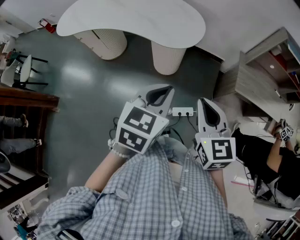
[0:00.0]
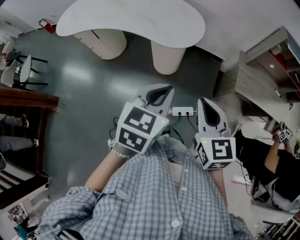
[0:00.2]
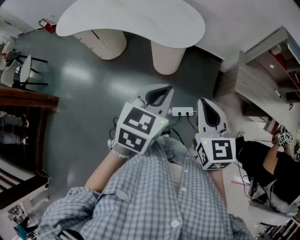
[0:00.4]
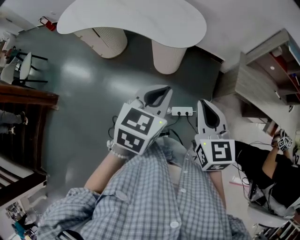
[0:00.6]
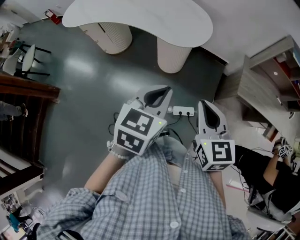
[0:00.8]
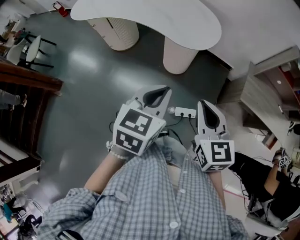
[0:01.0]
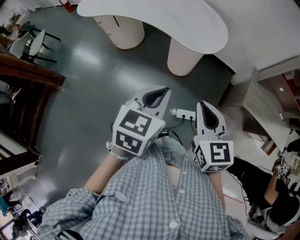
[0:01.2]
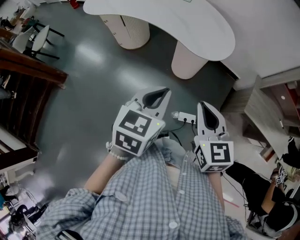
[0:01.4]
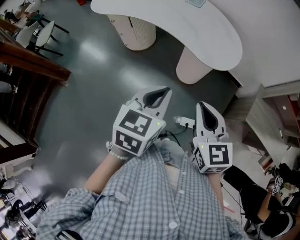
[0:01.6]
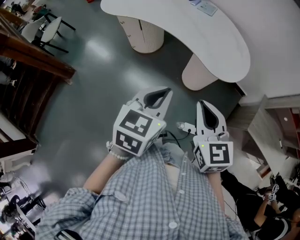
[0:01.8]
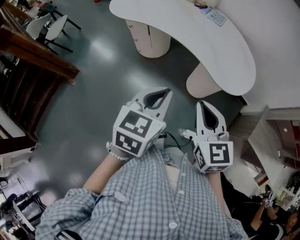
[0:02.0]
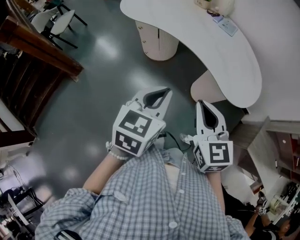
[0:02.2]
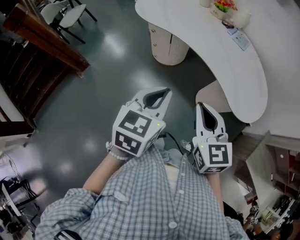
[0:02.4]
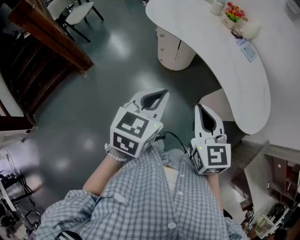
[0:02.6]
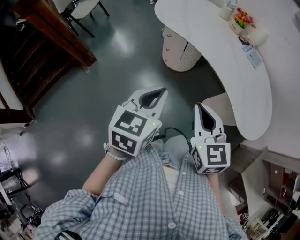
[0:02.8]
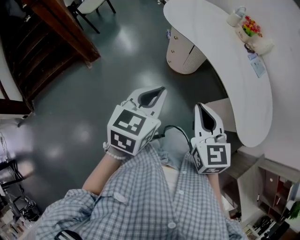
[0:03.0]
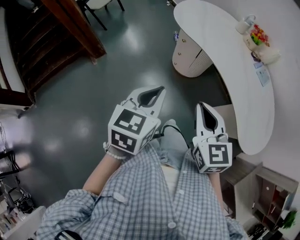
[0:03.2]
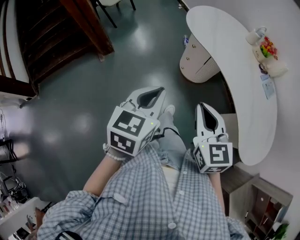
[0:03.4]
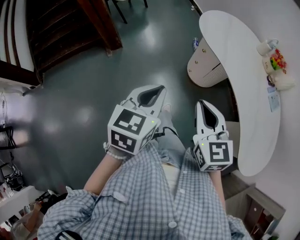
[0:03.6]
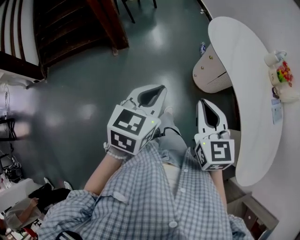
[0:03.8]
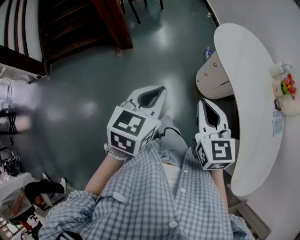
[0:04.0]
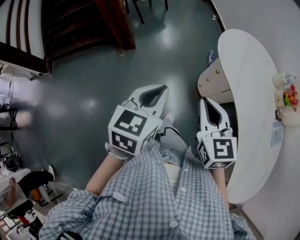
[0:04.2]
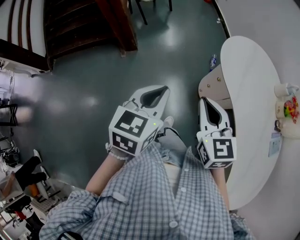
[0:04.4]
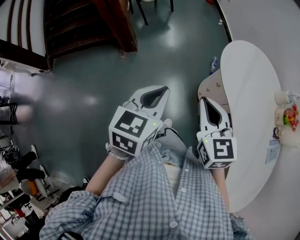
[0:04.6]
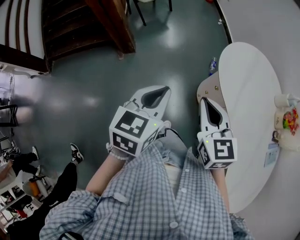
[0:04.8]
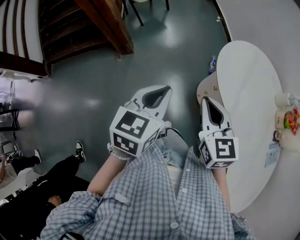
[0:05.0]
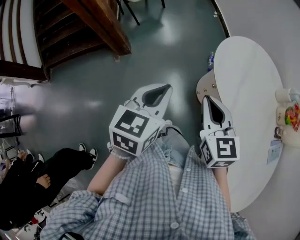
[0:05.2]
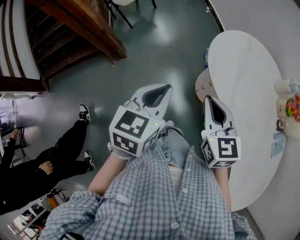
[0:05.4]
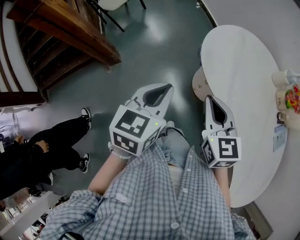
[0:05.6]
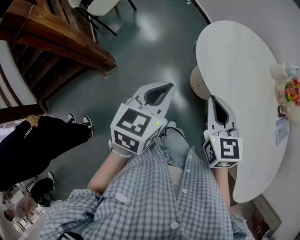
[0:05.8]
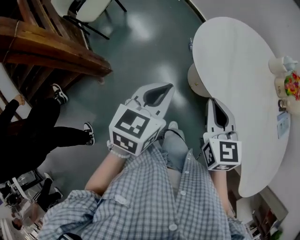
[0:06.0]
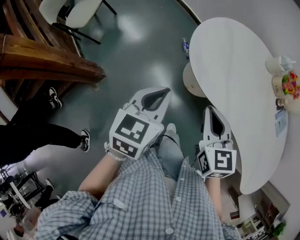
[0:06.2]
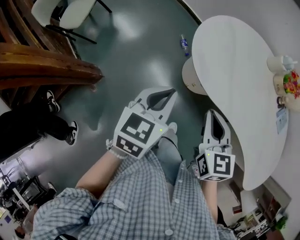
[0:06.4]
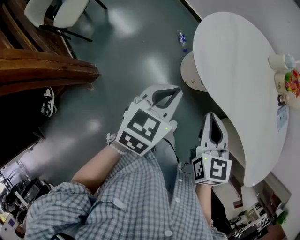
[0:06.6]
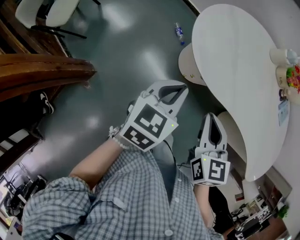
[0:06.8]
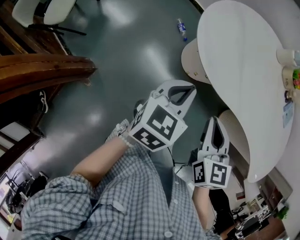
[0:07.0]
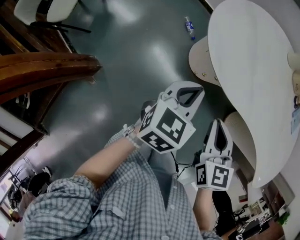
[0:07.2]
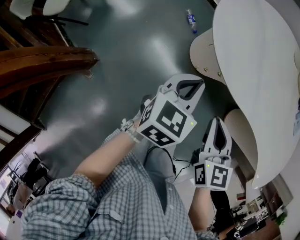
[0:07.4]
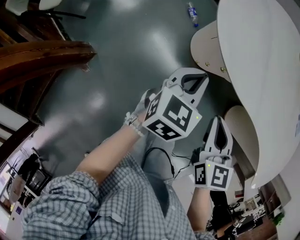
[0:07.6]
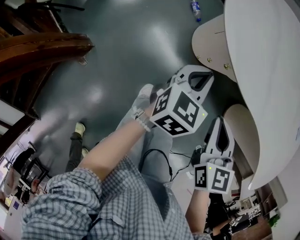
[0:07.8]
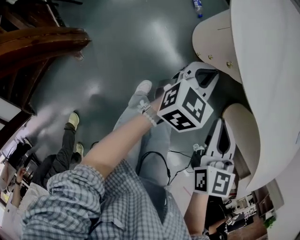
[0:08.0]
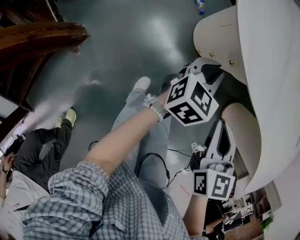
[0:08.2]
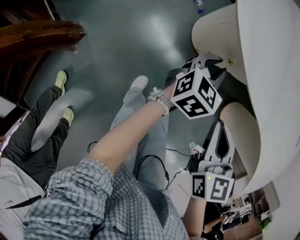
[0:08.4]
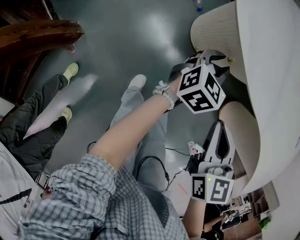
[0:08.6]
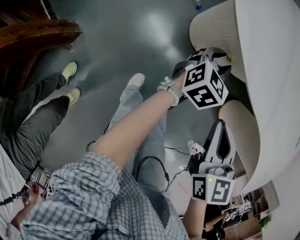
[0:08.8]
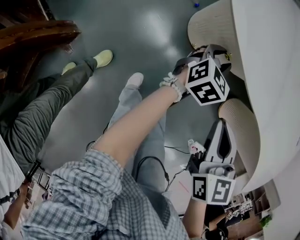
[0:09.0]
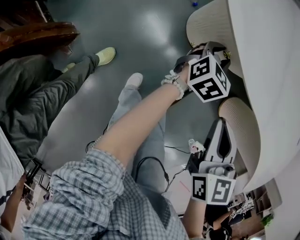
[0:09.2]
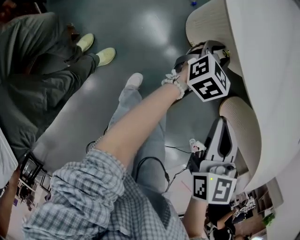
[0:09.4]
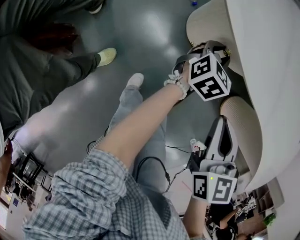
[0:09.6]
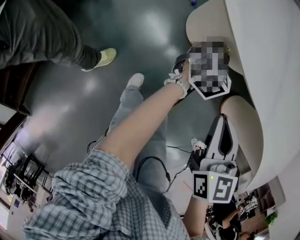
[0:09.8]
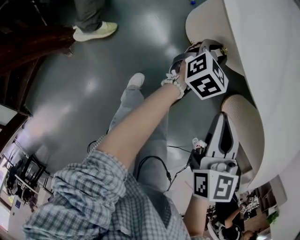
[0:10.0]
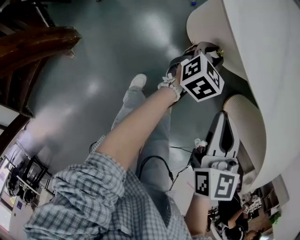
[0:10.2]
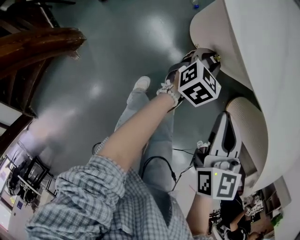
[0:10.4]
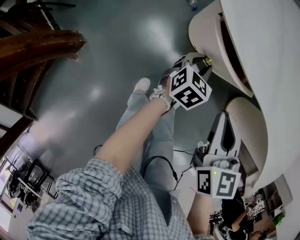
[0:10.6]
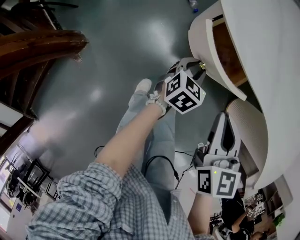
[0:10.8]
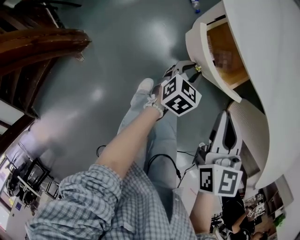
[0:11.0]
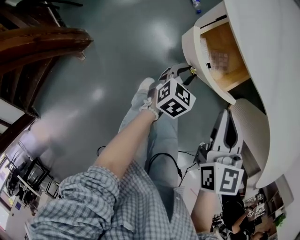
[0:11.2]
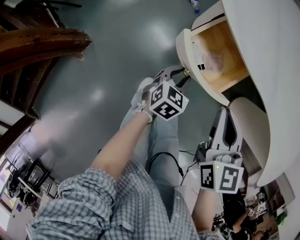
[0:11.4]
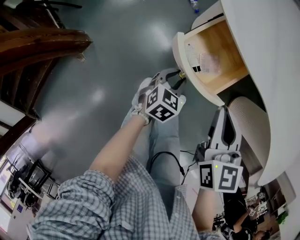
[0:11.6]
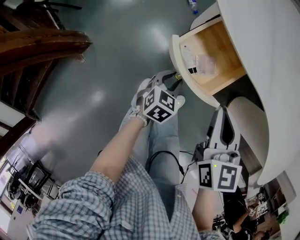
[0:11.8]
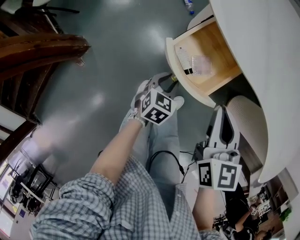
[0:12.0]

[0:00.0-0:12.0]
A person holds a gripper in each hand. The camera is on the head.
0.0 to 1.6 s: The grippers both shift to the left by some 10 cm.
1.6 to 3.0 s: The two grippers go some 35 cm to the left and forward. The right gripper swivels about 20 degrees, while the left gripper changes its angle by roughly 30 degrees.
3.0 to 4.4 s: The left gripper moves about 25 cm, and rotates some 30 degrees; the right gripper moves approximately 30 cm, and changes its angle by about 30 degrees.
4.4 to 6.0 s: The left gripper shifts by roughly 25 cm, and rotates about 30 degrees. The right gripper moves about 20 cm, and changes its angle by approximately 30 degrees.
6.0 to 7.6 s: The left gripper shifts about 20 cm downward and forward, and swivels approximately 20 degrees. The right gripper goes some 15 cm downward, and changes its angle by some 30 degrees.
7.6 to 9.0 s: The left gripper moves downward, to the right and forward, some 20 cm, and opens its fingers; the right gripper goes approximately 5 cm downward.
9.0 to 10.4 s: The grippers move only a little.
10.4 to 12.0 s: The left gripper moves backward and to the left, roughly 15 cm. The right gripper changes place by approximately 5 cm.

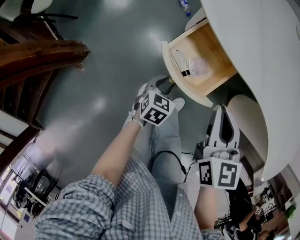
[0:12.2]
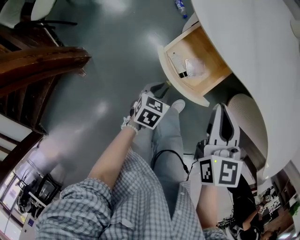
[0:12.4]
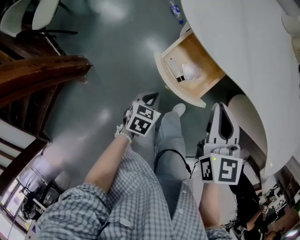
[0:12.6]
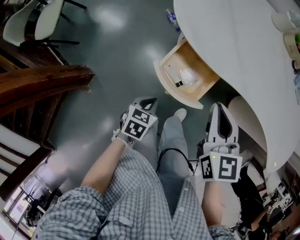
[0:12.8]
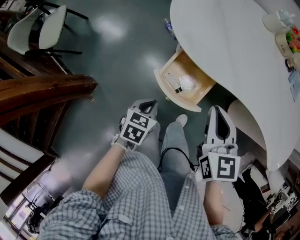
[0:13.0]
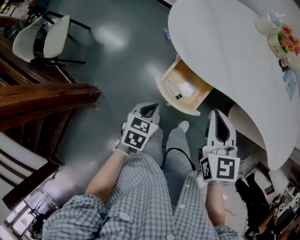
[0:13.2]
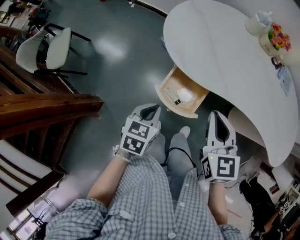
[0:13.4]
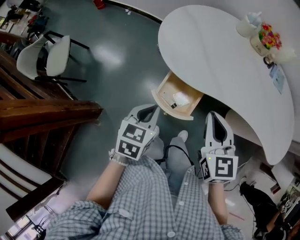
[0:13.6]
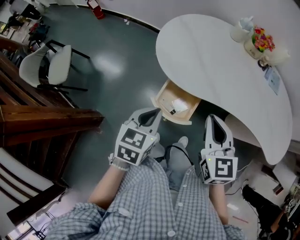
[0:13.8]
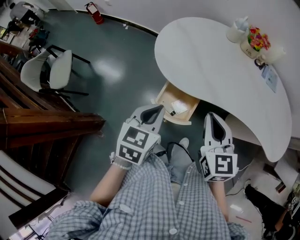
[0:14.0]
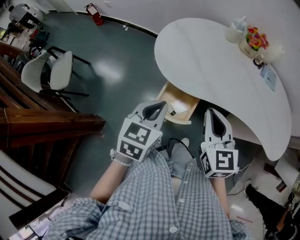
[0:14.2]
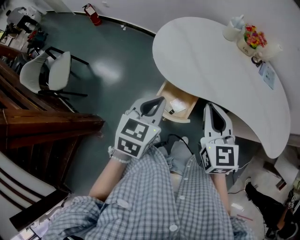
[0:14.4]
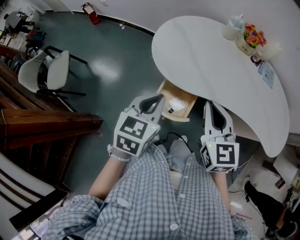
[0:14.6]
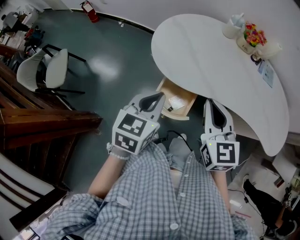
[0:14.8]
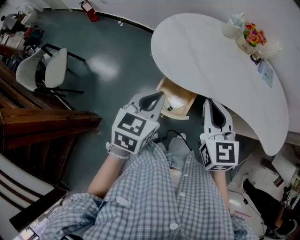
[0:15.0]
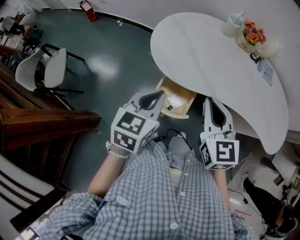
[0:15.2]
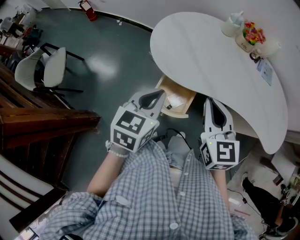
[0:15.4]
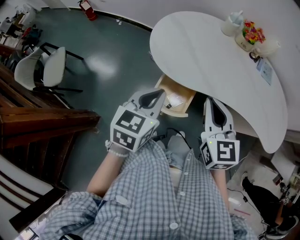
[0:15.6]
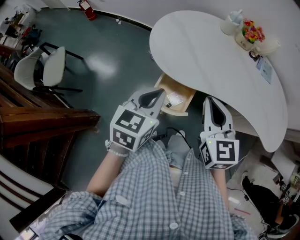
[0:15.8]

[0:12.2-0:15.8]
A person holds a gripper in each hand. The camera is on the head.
12.2 to 14.0 s: The right gripper is displaced upward by approximately 20 cm. Meanwhile the left gripper shifts about 35 cm upward, changes its angle by some 20 degrees, and closes up.
14.0 to 15.8 s: The grippers stay close to where they were, moving slightly.

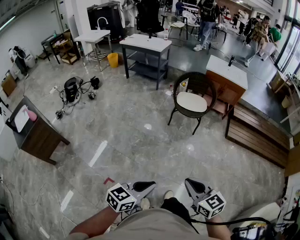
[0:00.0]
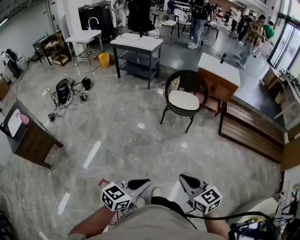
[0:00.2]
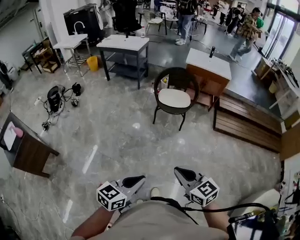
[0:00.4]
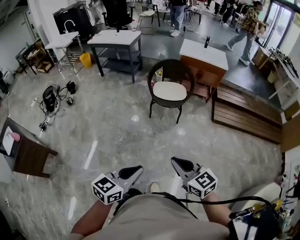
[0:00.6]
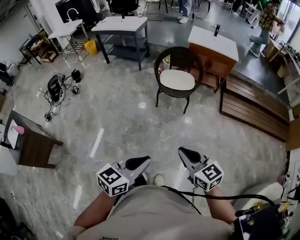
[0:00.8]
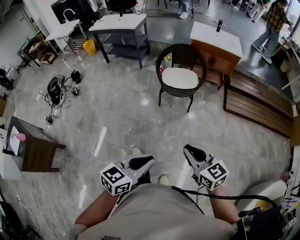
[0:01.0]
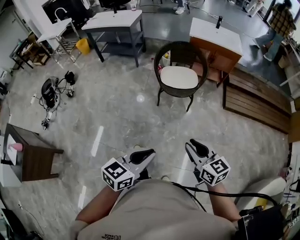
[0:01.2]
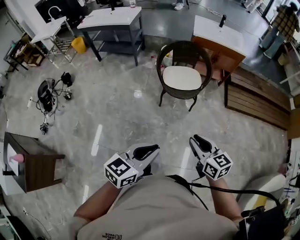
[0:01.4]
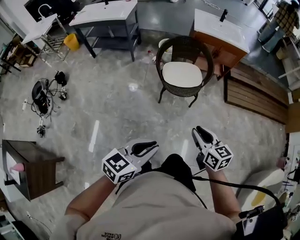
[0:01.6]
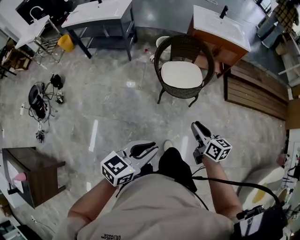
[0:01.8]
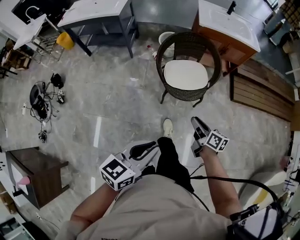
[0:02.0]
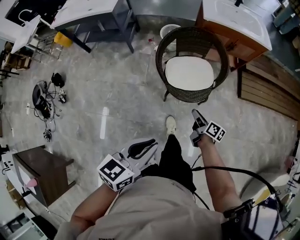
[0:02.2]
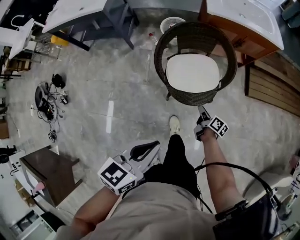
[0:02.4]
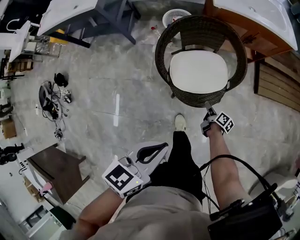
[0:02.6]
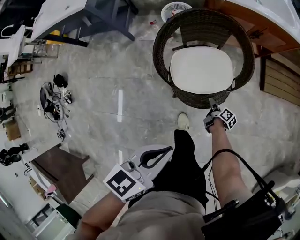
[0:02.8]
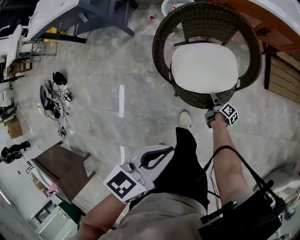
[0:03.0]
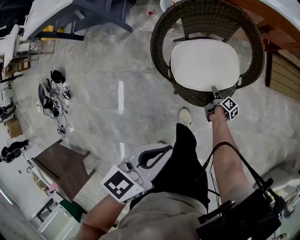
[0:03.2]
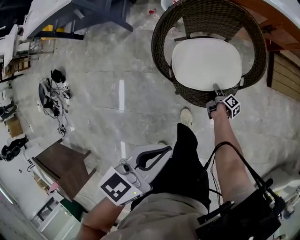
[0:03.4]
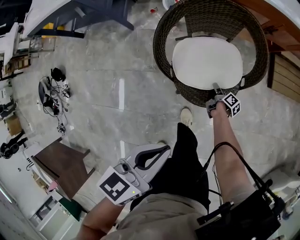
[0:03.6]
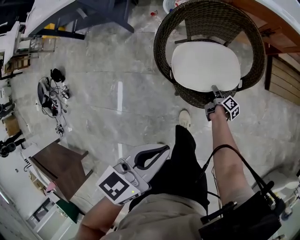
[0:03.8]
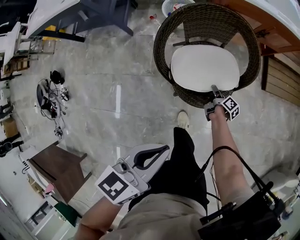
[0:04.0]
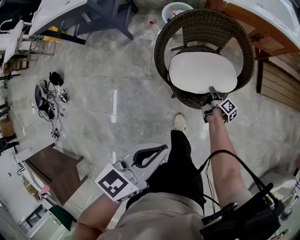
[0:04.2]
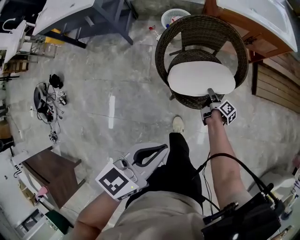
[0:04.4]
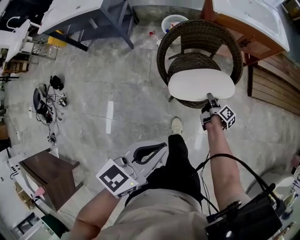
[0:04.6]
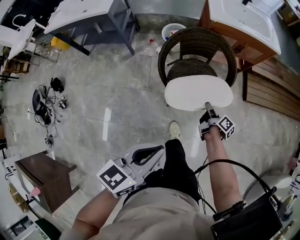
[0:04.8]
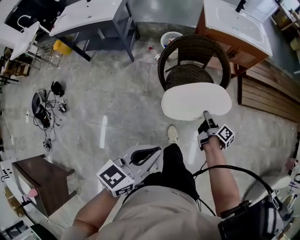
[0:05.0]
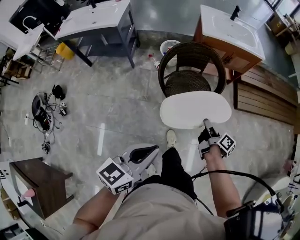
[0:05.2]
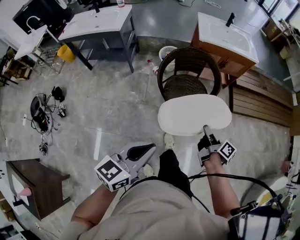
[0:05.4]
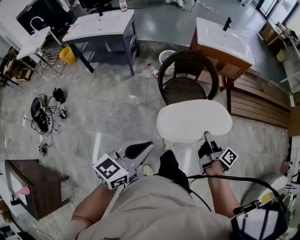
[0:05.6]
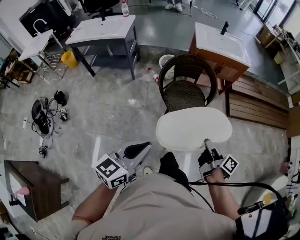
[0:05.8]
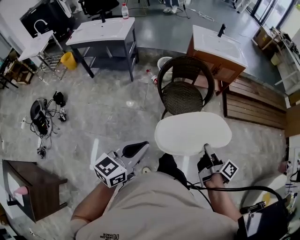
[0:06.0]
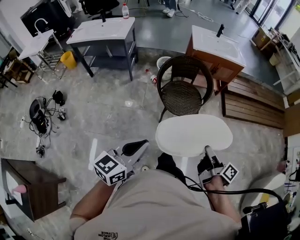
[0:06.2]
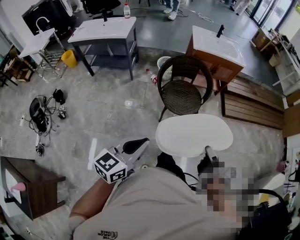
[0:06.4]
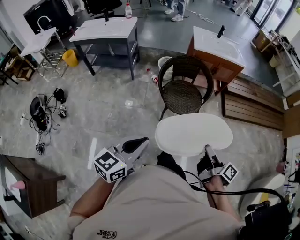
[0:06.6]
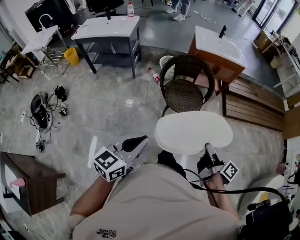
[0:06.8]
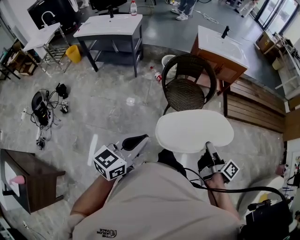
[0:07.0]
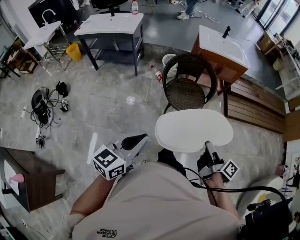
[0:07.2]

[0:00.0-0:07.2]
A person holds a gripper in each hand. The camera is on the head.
0.0 to 1.4 s: The grippers both shift forward by about 40 cm. The right gripper rotates roughly 20 degrees.
1.4 to 2.8 s: The two grippers travel together, forward, about 50 cm. The right gripper heads downward, covering some 50 cm, and rotates around the line of its fingers by roughly 70 degrees, clockwise from behind.
2.8 to 4.4 s: The right gripper heads upward, covering about 10 cm, and closes up. Meanwhile the left gripper moves roughly 5 cm.
4.4 to 5.8 s: The right gripper heads backward and upward, covering about 50 cm, while the left gripper shifts approximately 30 cm backward and upward.
5.8 to 7.2 s: Both grippers travel together backward, approximately 10 cm.

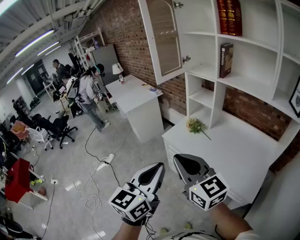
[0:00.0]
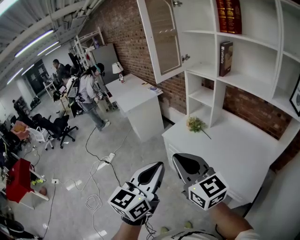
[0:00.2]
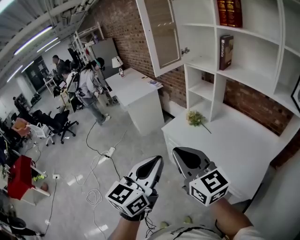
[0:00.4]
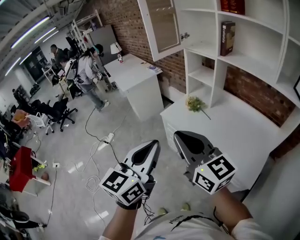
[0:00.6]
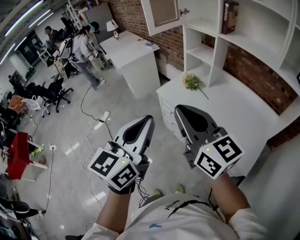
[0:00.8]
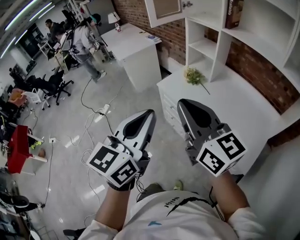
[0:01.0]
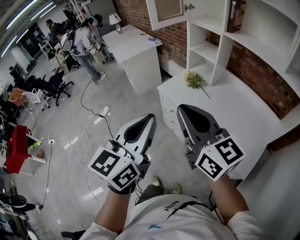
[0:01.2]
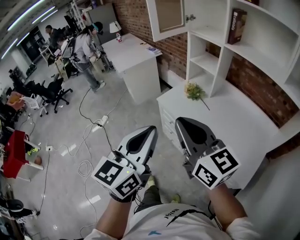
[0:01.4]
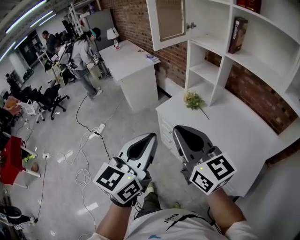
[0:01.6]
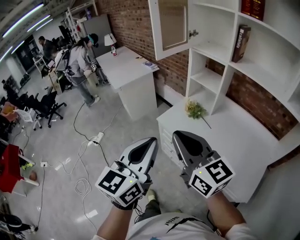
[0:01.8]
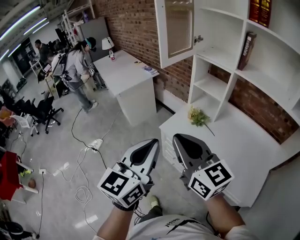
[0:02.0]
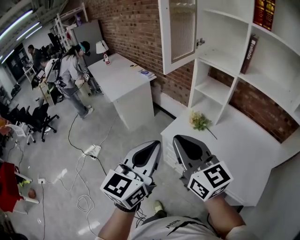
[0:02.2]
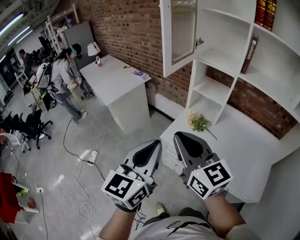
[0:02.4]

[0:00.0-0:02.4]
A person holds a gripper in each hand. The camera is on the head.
0.0 to 1.2 s: The right gripper goes approximately 5 cm to the right.
1.2 to 2.4 s: The two grippers go some 30 cm forward and to the left.
